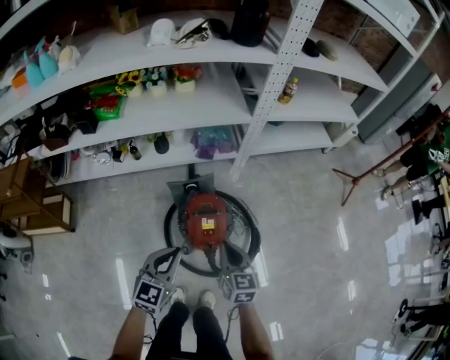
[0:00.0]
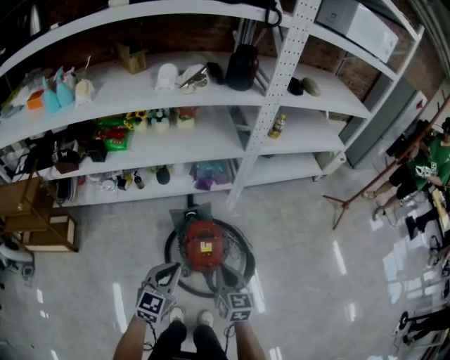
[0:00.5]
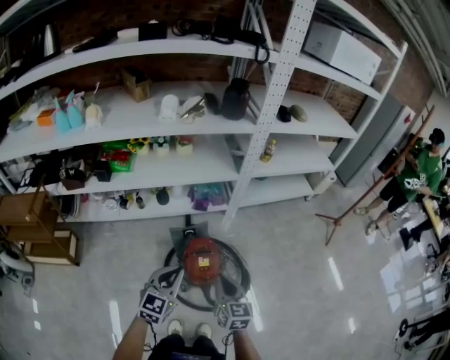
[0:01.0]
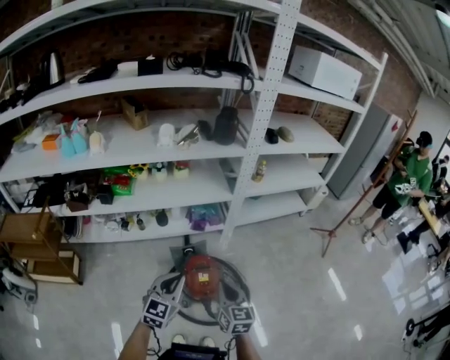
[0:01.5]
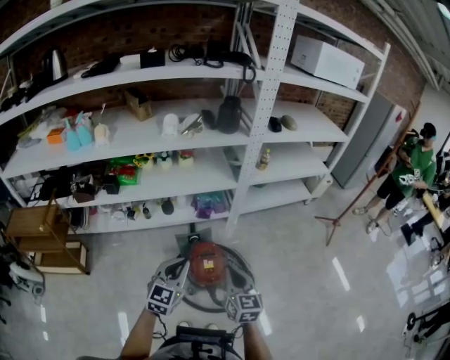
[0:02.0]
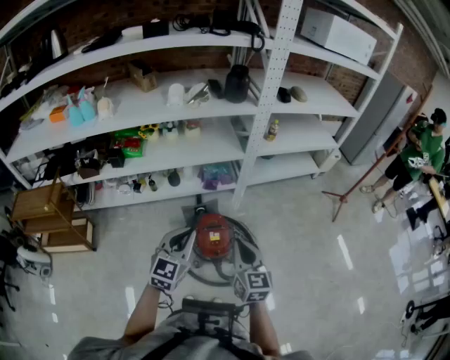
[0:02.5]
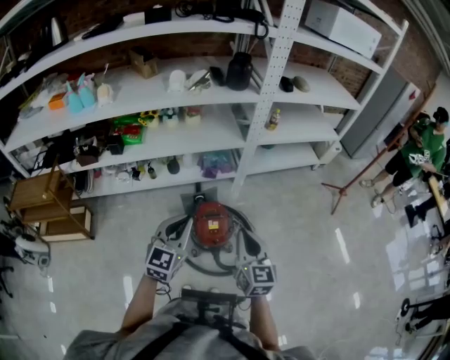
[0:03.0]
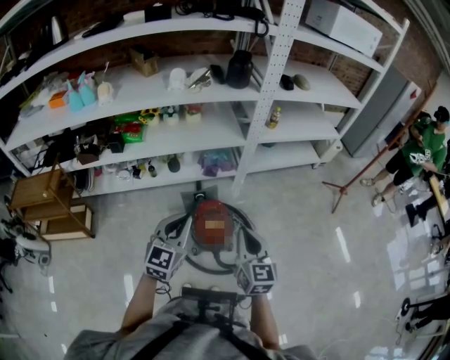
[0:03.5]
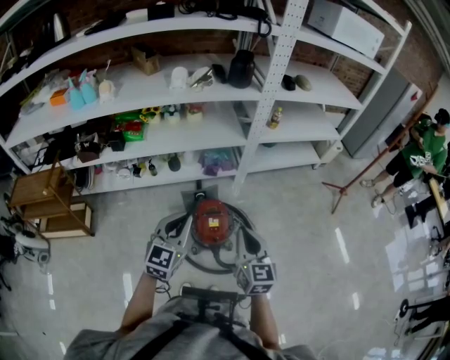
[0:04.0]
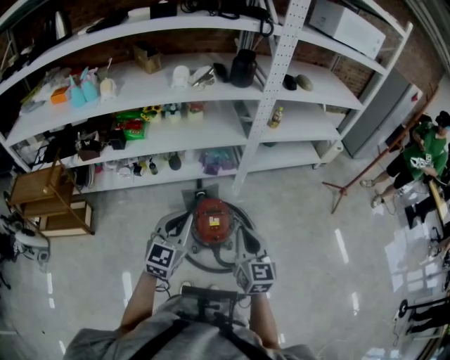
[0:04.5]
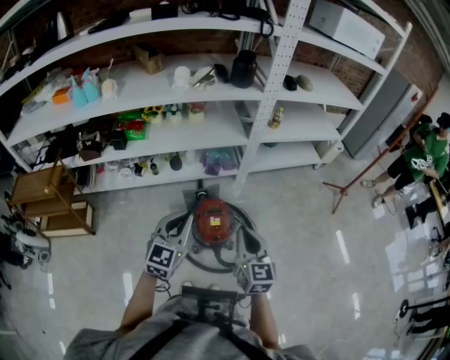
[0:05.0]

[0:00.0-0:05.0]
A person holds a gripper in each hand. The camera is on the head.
0:00.0 to 0:02.5: The grippers both shift upward by roughly 25 cm.
0:02.5 to 0:05.0: There are only small adjustments of the grippers.

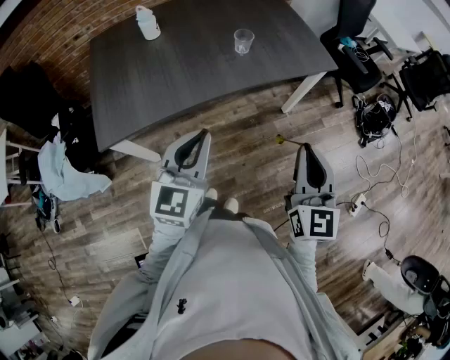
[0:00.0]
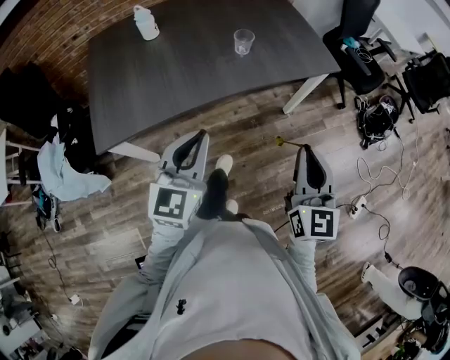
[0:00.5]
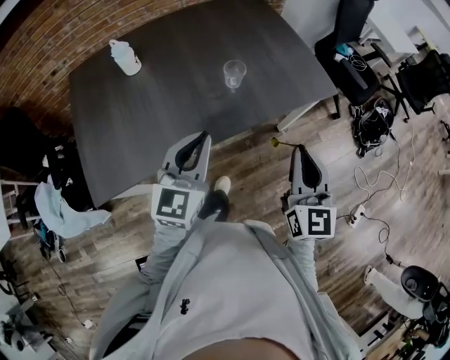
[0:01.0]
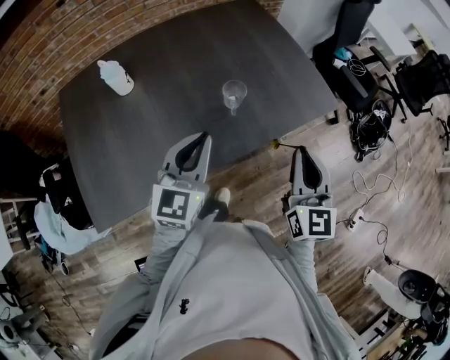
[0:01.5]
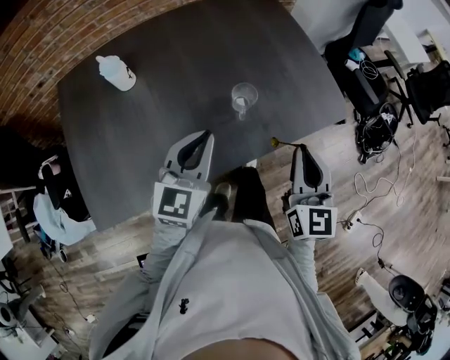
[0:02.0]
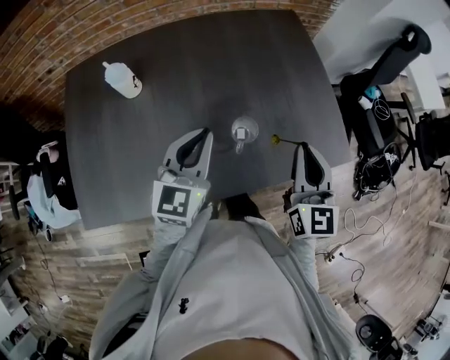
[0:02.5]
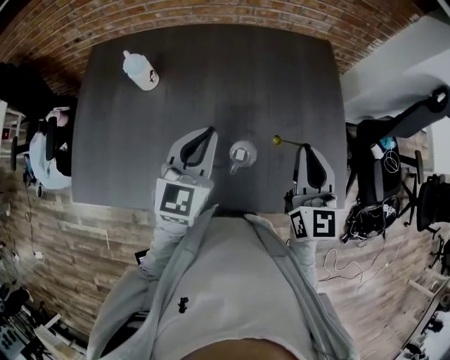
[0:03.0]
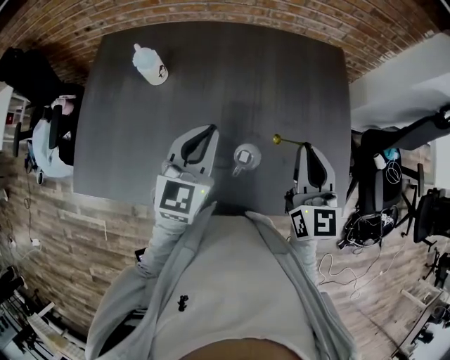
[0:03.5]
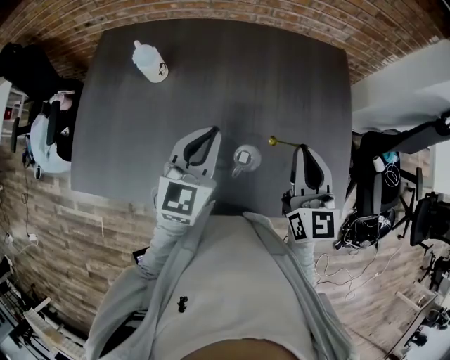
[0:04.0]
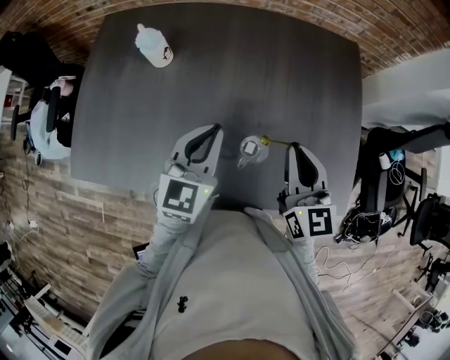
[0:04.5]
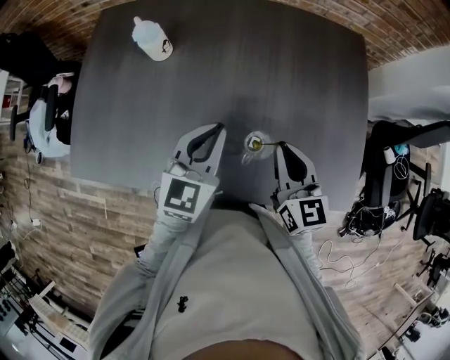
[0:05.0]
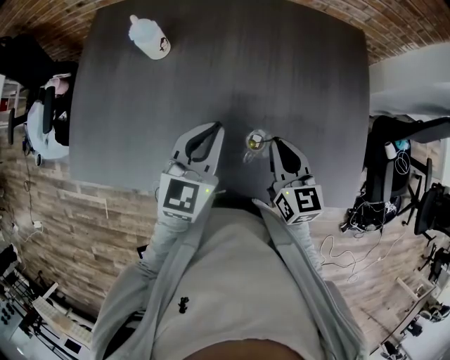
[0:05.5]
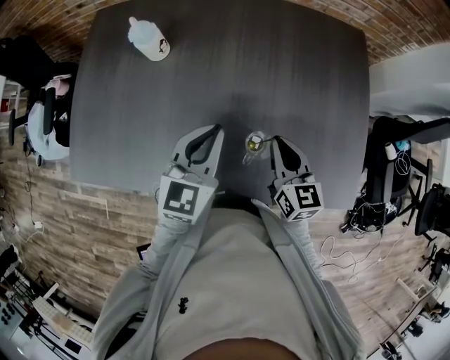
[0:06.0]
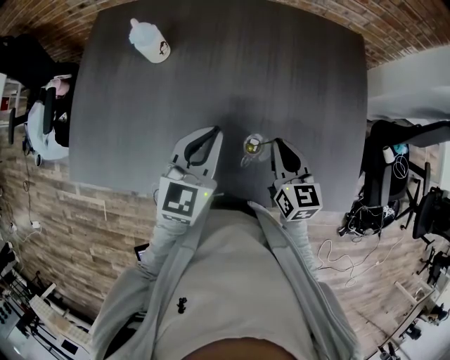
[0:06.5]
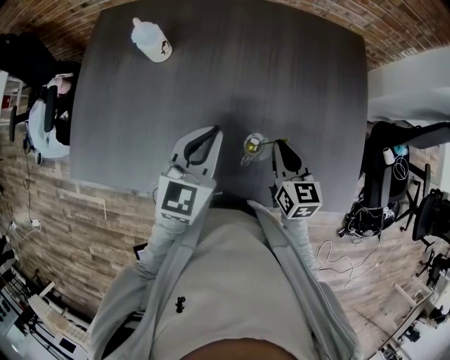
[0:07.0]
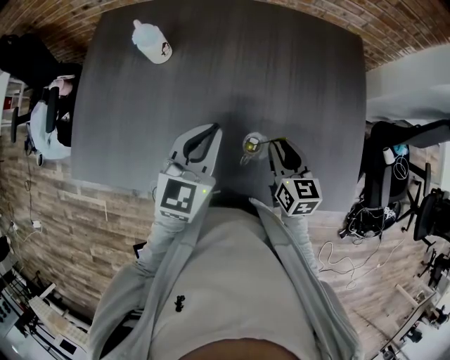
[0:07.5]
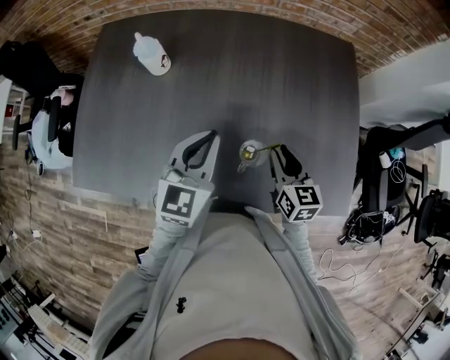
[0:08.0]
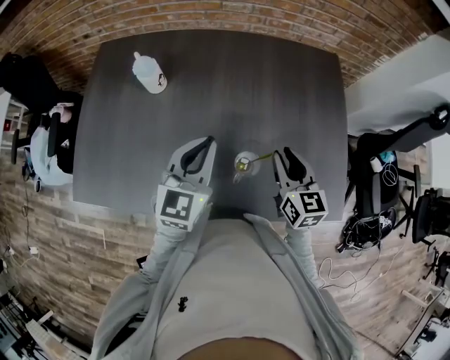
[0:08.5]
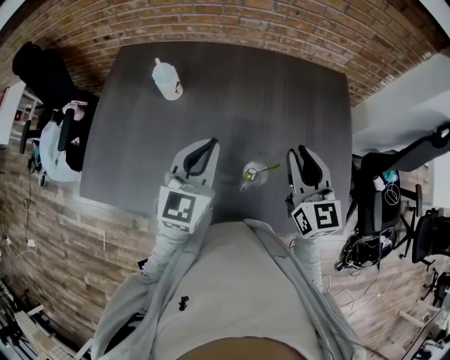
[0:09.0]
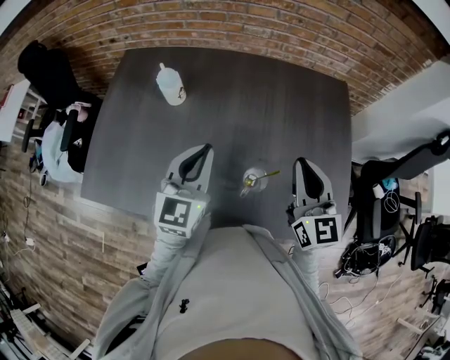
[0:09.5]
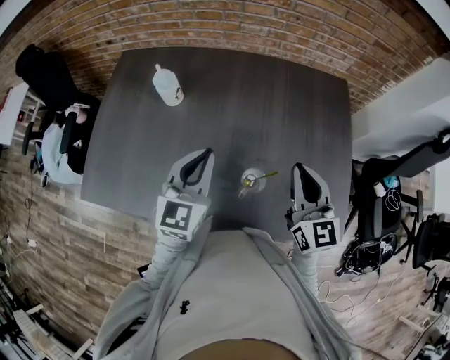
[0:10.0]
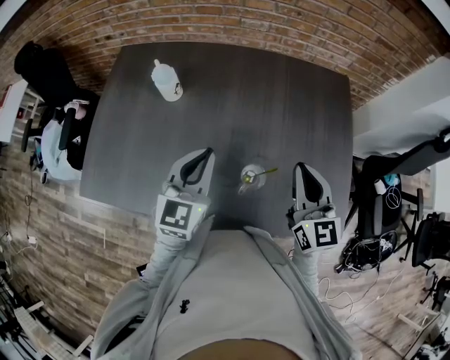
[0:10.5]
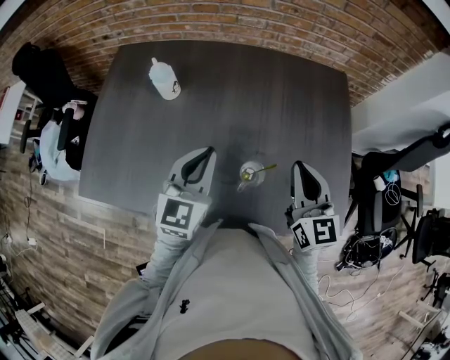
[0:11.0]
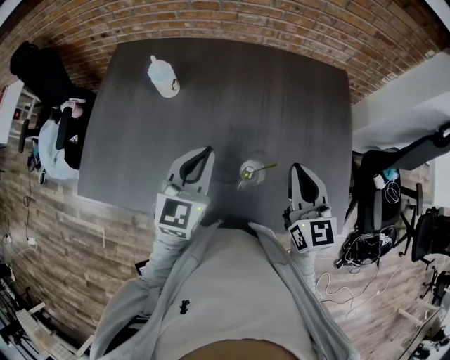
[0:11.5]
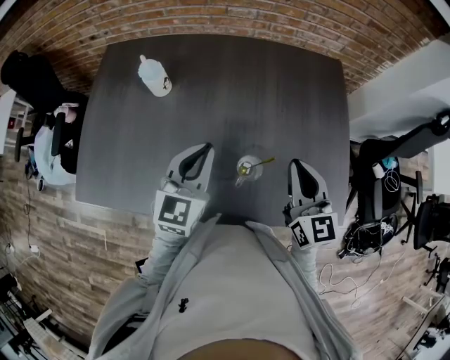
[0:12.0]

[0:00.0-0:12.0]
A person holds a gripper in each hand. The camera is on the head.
0:00.0 to 0:02.0: The grippers both shift forward by approximately 35 cm.
0:02.0 to 0:04.0: The left gripper moves roughly 15 cm, and turns by about 30 degrees, while the right gripper changes place by roughly 25 cm, and turns by roughly 30 degrees.
0:04.0 to 0:06.0: The left gripper travels downward by roughly 5 cm, while the right gripper heads downward and to the left, covering roughly 15 cm, and rotates approximately 20 degrees.
0:06.0 to 0:08.0: There are only small adjustments of the grippers.
0:08.0 to 0:10.0: The right gripper goes approximately 15 cm upward, swivels about 30 degrees, and closes up; the left gripper moves some 5 cm.
0:10.0 to 0:12.0: There are only small adjustments of the grippers.

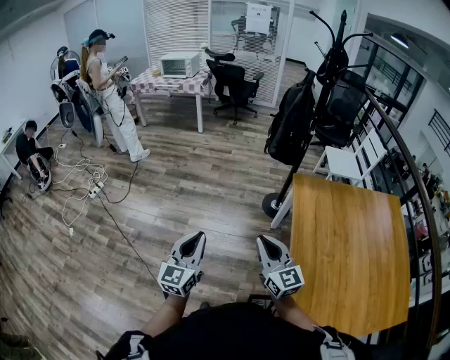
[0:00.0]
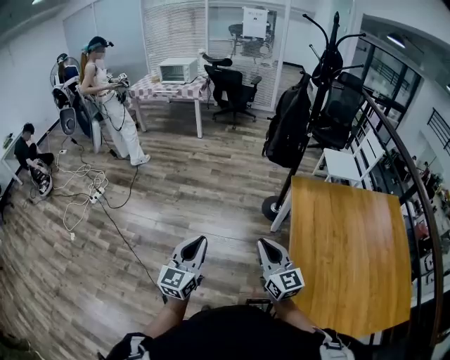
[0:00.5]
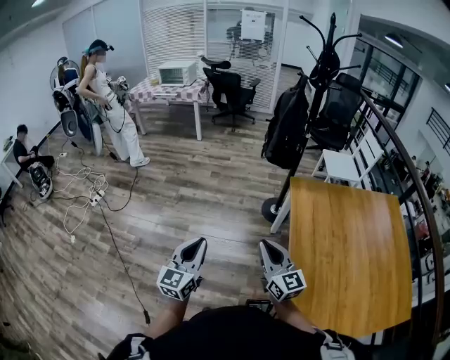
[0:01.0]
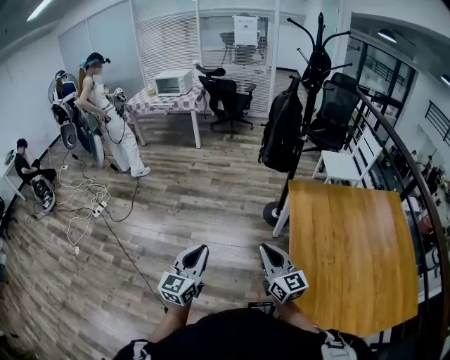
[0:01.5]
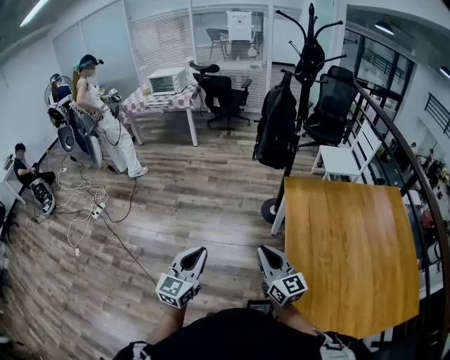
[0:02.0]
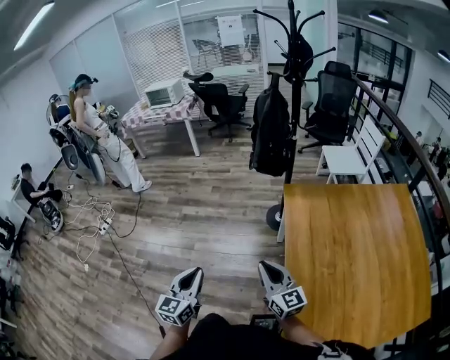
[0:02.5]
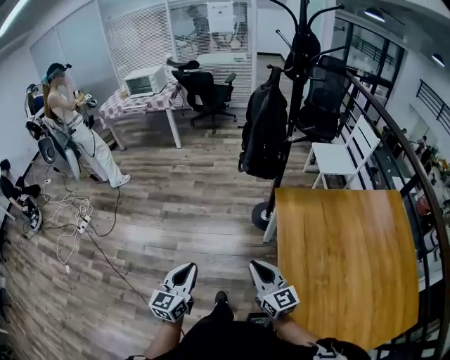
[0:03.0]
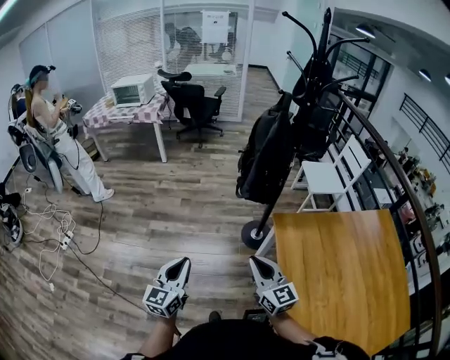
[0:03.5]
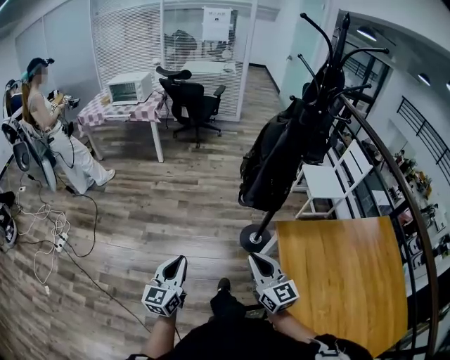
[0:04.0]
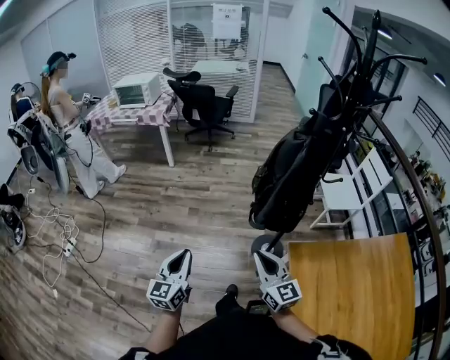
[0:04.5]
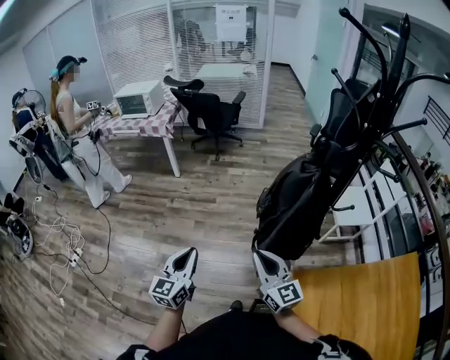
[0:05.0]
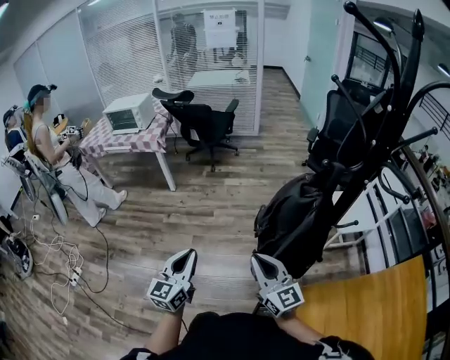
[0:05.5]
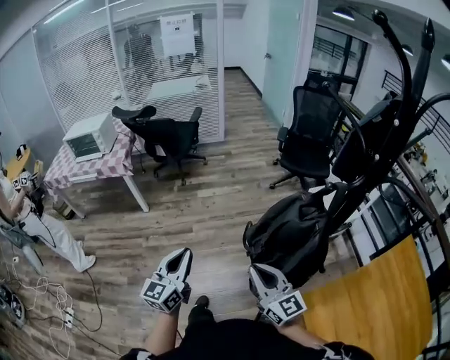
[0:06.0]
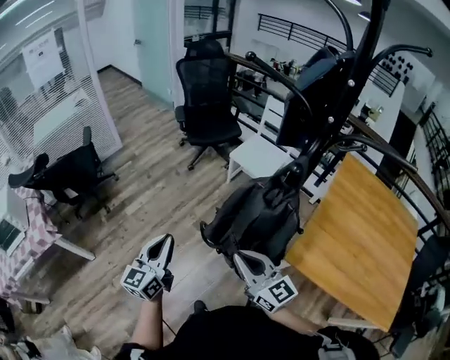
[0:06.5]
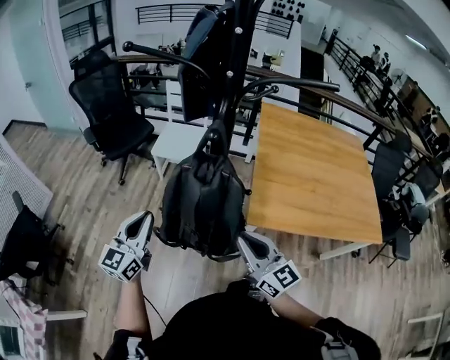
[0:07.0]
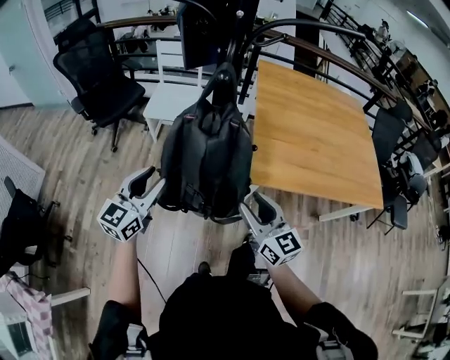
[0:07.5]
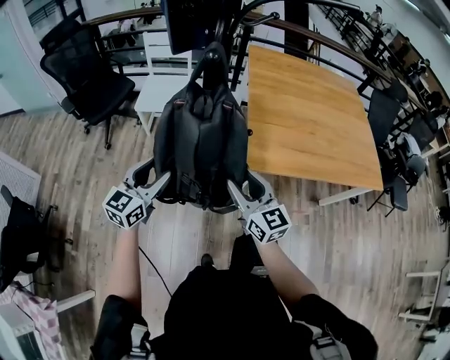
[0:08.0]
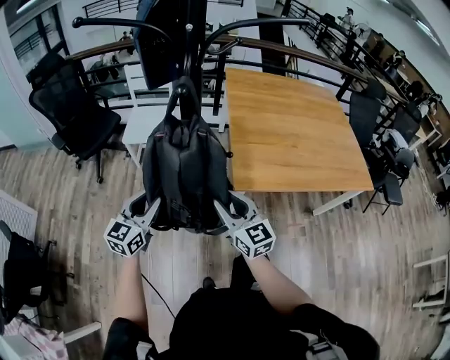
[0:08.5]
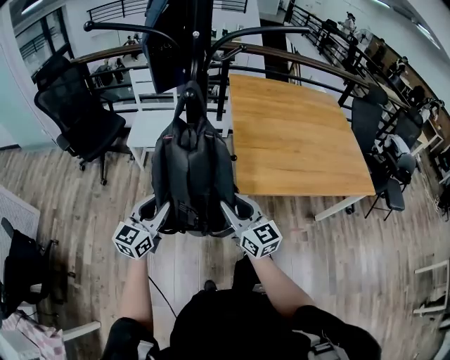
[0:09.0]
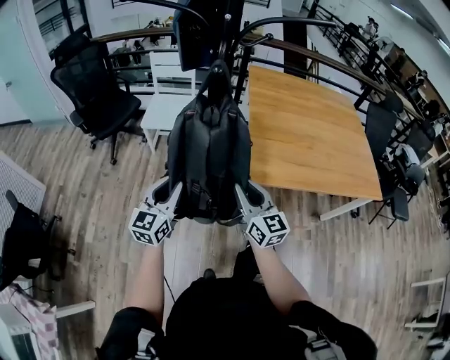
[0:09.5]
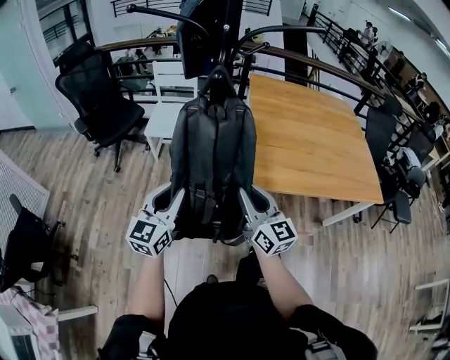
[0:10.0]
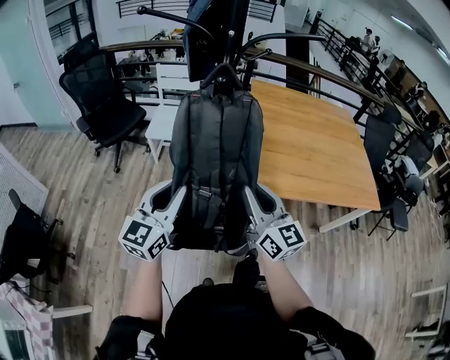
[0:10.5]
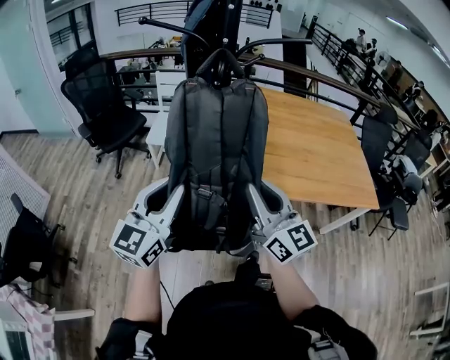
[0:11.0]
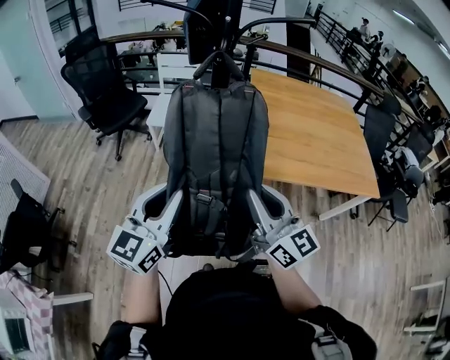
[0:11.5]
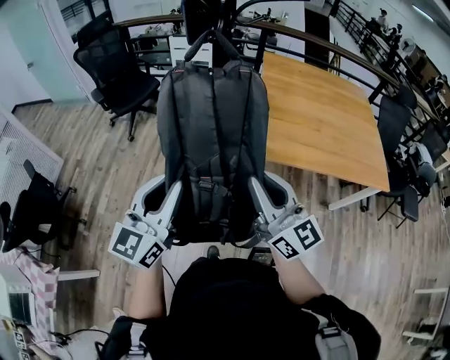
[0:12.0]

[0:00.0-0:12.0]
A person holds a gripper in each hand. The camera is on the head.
0:00.0 to 0:02.0: Both grippers move to the right, about 5 cm.
0:02.0 to 0:04.0: Both grippers move forward, roughly 30 cm.
0:04.0 to 0:06.0: The grippers both shift forward by about 40 cm.
0:06.0 to 0:08.0: The left gripper ends up roughly 30 cm from where it was, rotates approximately 90 degrees, and opens, while the right gripper shifts by roughly 10 cm, swivels roughly 80 degrees, and opens its fingers.
0:08.0 to 0:10.0: The left gripper goes some 10 cm upward and backward, and closes. Meanwhile the right gripper changes place by roughly 5 cm, and closes its fingers.
0:10.0 to 0:12.0: The grippers both shift backward and upward by roughly 20 cm.
